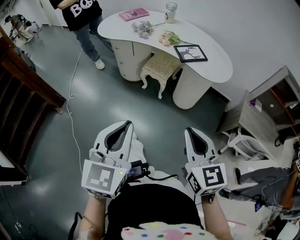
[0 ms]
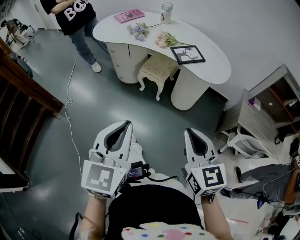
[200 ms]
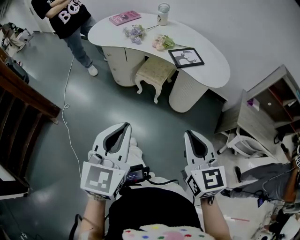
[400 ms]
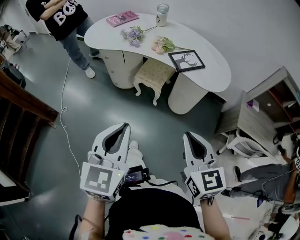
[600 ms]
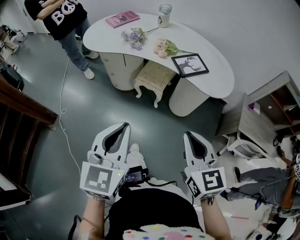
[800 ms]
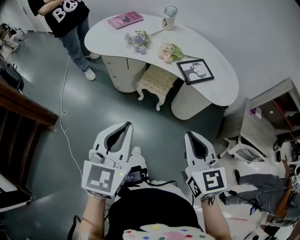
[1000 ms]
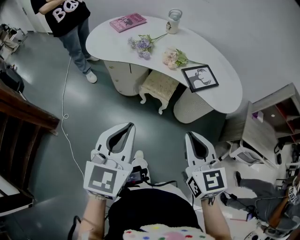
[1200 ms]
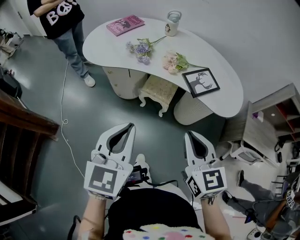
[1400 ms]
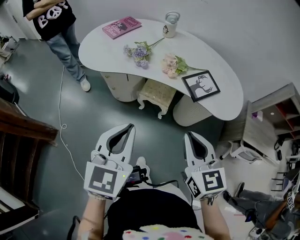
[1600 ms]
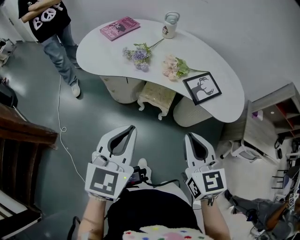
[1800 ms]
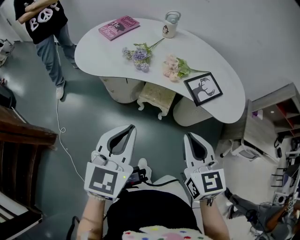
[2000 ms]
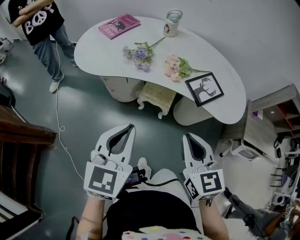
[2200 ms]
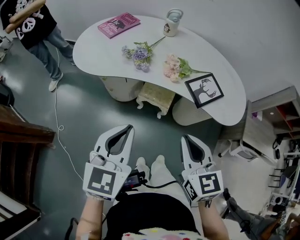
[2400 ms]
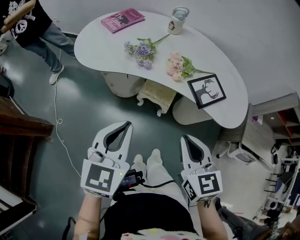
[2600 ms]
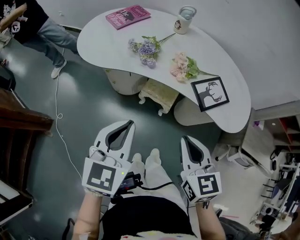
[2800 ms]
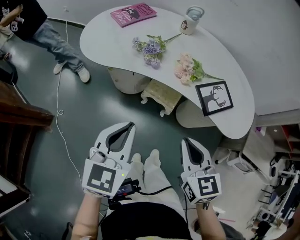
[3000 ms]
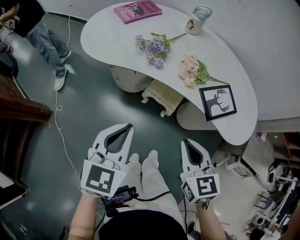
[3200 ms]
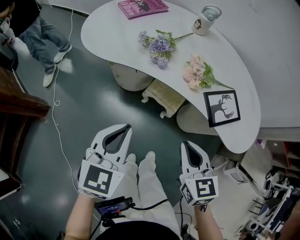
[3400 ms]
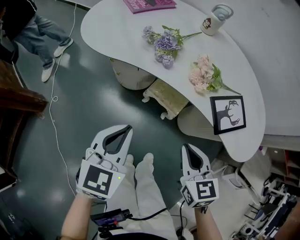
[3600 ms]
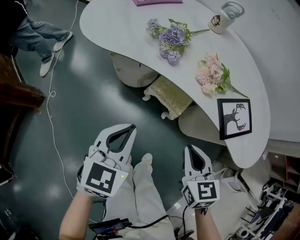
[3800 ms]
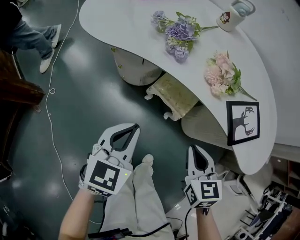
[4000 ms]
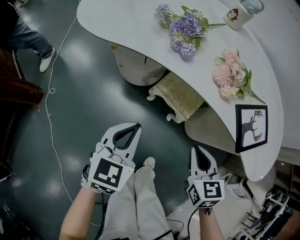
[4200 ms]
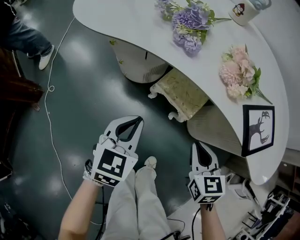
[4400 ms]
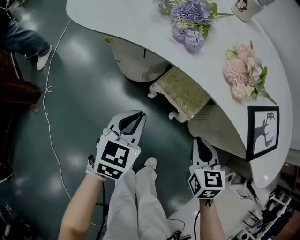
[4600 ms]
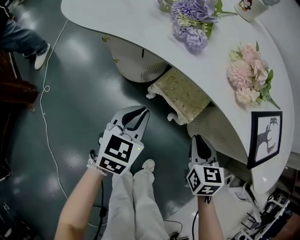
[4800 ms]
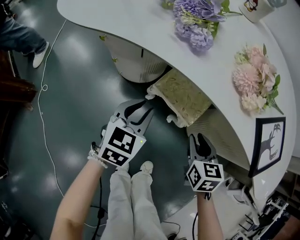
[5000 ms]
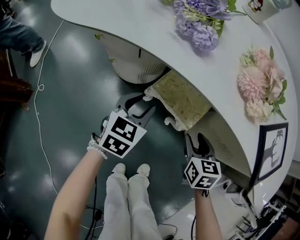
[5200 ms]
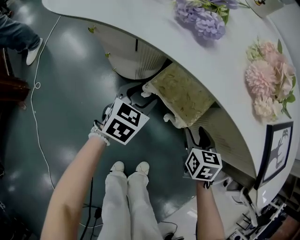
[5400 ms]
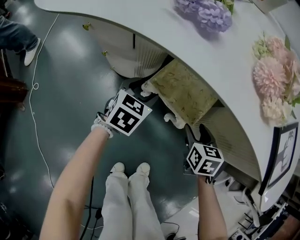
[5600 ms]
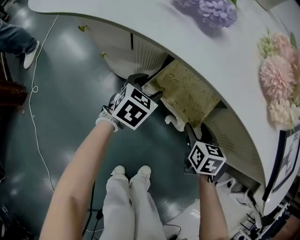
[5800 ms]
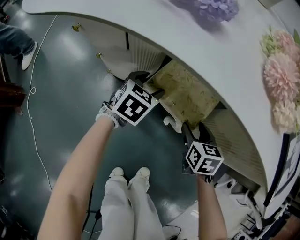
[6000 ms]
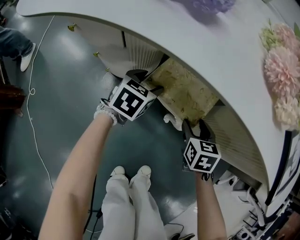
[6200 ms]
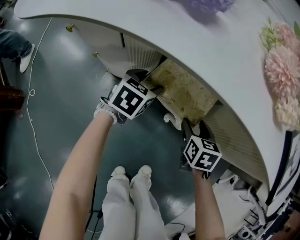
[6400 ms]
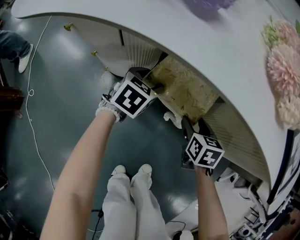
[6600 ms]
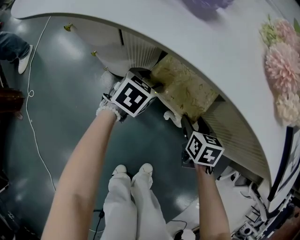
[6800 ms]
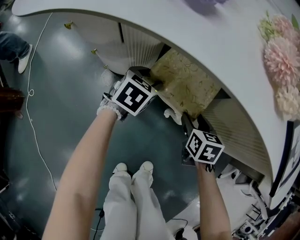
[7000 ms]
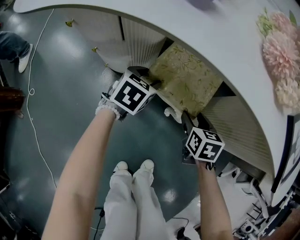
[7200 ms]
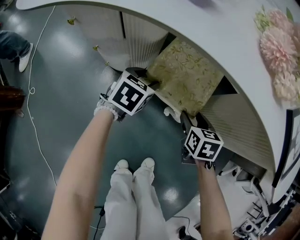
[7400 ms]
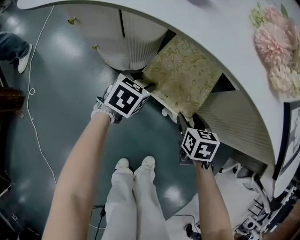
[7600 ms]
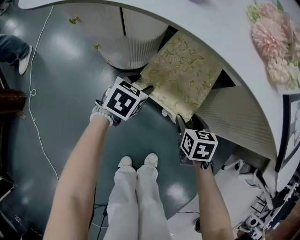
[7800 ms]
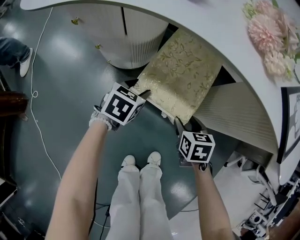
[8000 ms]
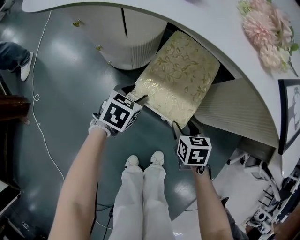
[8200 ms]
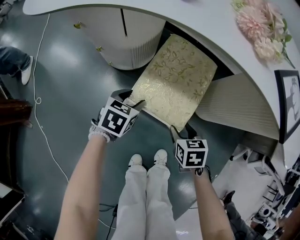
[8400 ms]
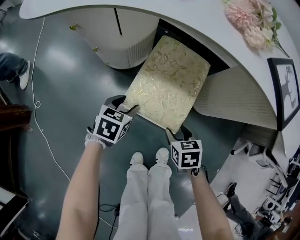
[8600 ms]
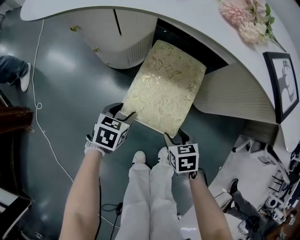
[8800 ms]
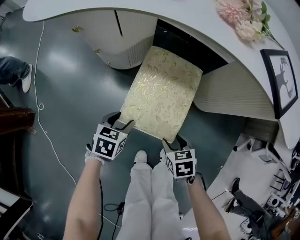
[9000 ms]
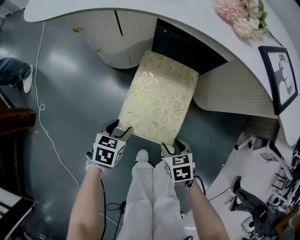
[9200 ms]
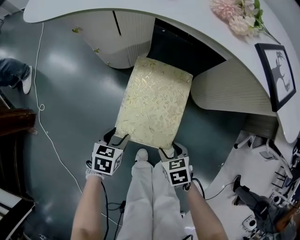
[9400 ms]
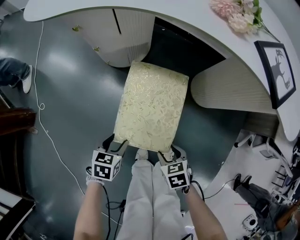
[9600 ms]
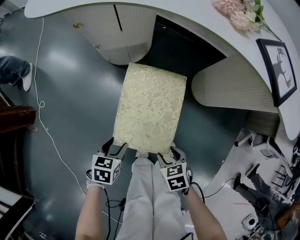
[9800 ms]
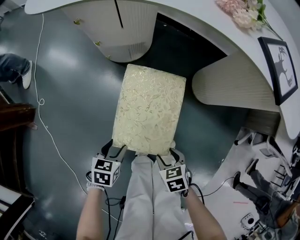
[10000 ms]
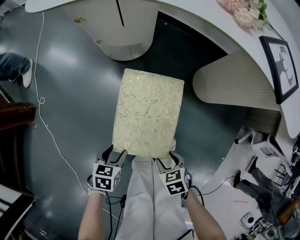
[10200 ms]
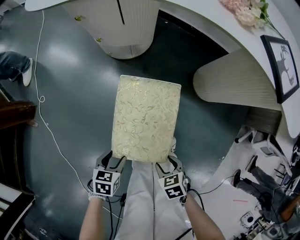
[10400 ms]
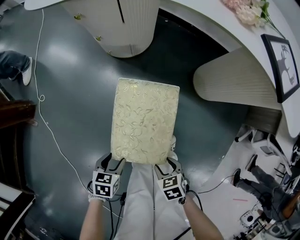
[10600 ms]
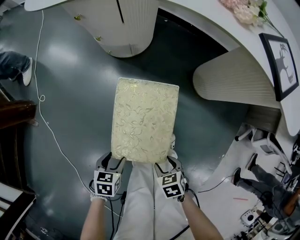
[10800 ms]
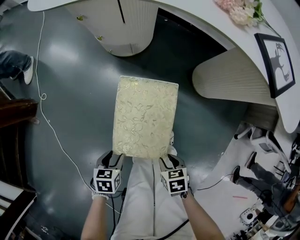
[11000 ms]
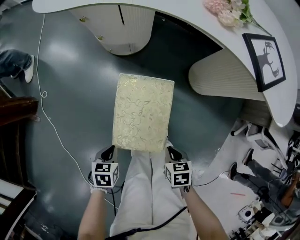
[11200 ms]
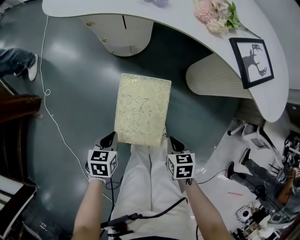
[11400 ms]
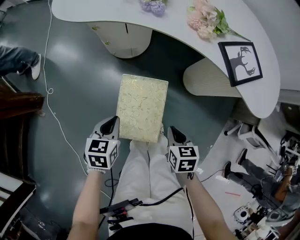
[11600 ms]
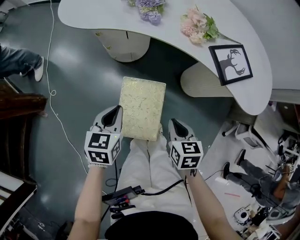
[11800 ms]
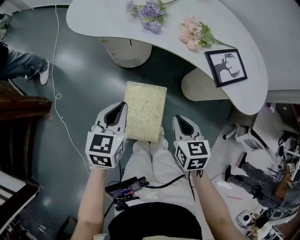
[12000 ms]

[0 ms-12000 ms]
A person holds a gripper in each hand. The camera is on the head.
0 ms to 1600 ms: The left gripper goes roughly 30 cm forward. The right gripper is displaced forward and to the left by about 30 cm.
1600 ms to 3000 ms: Both grippers move forward and downward, roughly 10 cm.
3000 ms to 4400 ms: Both grippers travel together downward, approximately 25 cm.
4400 ms to 6000 ms: The grippers both shift downward and forward by about 30 cm. The right gripper opens its fingers; the left gripper opens its fingers.
6000 ms to 7600 ms: The grippers stay close to where they were, moving slightly.
7600 ms to 9000 ms: The two grippers go roughly 20 cm backward.
9000 ms to 10400 ms: Both grippers move backward, some 20 cm.
10400 ms to 12000 ms: Both grippers move upward and forward, approximately 40 cm. The right gripper changes its angle by about 40 degrees, and closes up. The left gripper tips its fingers upward by roughly 30 degrees, and closes up.

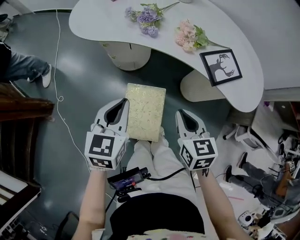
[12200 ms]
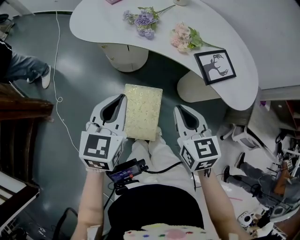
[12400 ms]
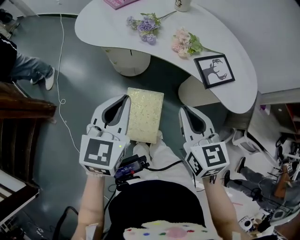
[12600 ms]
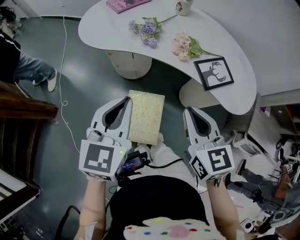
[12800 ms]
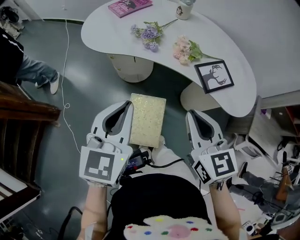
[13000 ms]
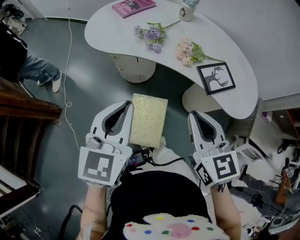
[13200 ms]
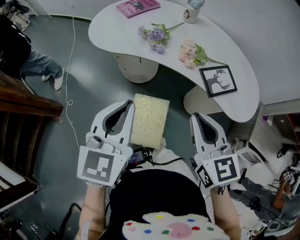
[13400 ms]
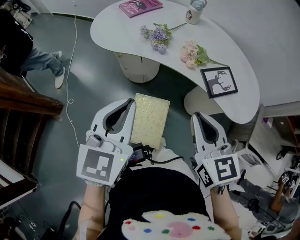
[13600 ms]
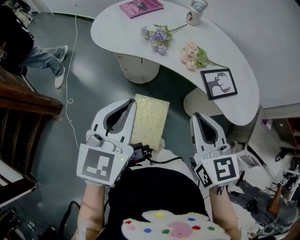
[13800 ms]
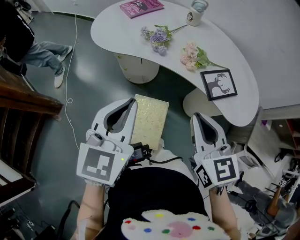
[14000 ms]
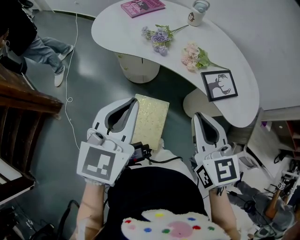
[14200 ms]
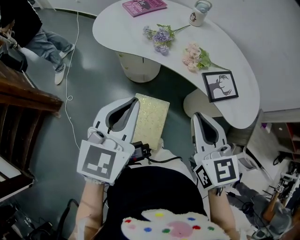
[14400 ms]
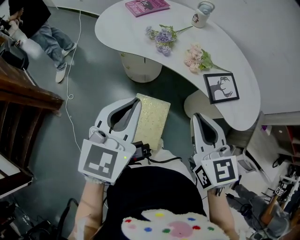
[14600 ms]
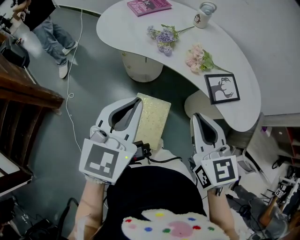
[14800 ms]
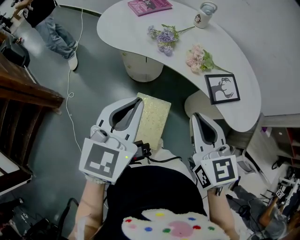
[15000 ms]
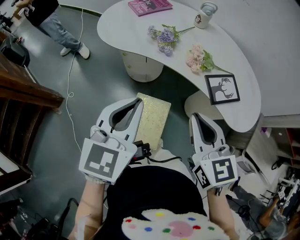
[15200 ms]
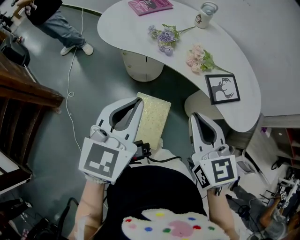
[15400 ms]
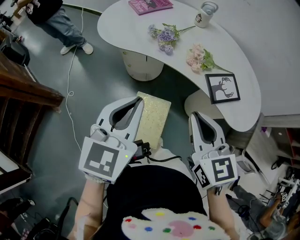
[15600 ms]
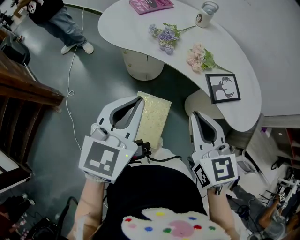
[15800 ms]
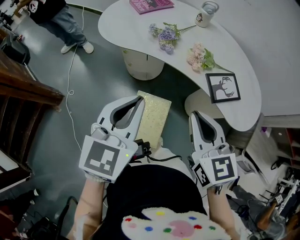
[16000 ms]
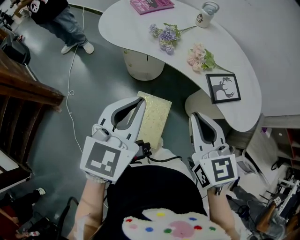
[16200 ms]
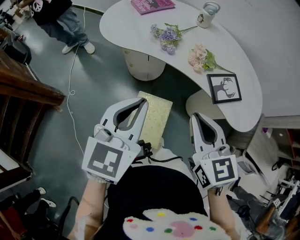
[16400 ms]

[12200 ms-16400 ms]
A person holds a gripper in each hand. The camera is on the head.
12200 ms to 13600 ms: The grippers both shift upward by roughly 15 cm.
13600 ms to 15000 ms: The grippers move only a little.
15000 ms to 16400 ms: The two grippers keep their place.

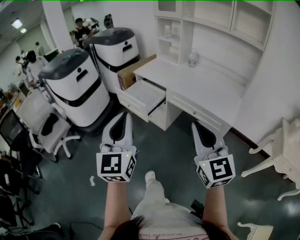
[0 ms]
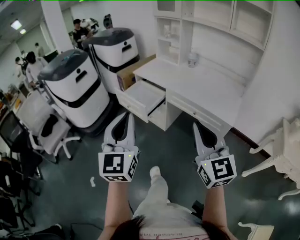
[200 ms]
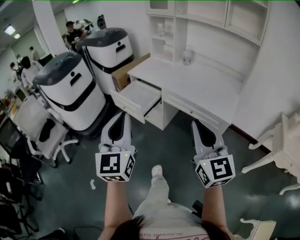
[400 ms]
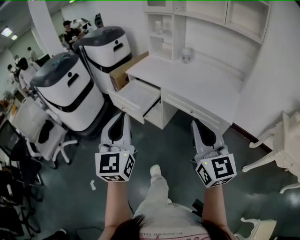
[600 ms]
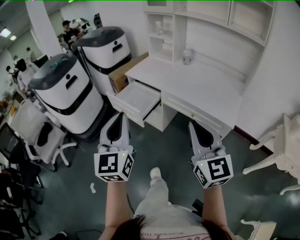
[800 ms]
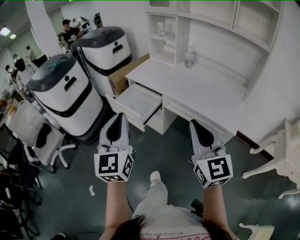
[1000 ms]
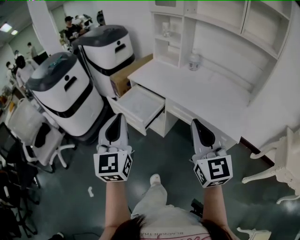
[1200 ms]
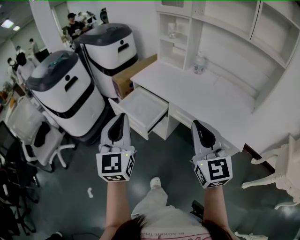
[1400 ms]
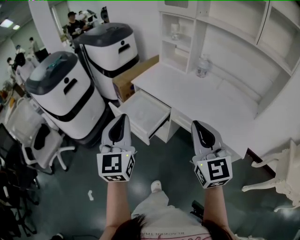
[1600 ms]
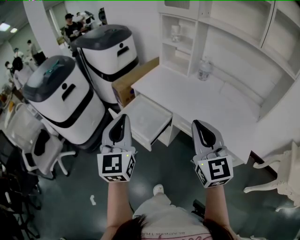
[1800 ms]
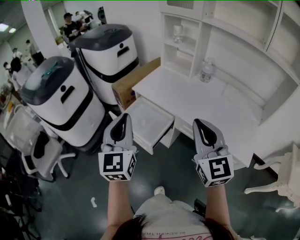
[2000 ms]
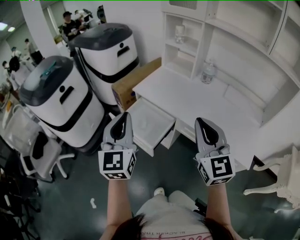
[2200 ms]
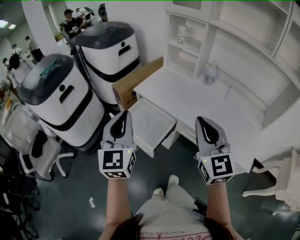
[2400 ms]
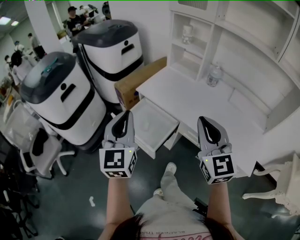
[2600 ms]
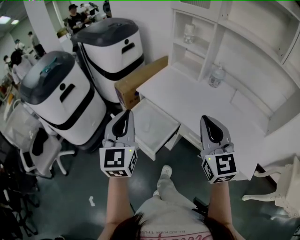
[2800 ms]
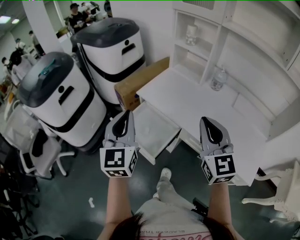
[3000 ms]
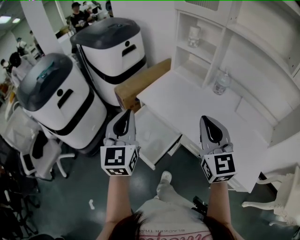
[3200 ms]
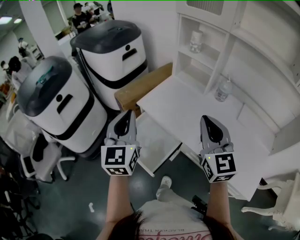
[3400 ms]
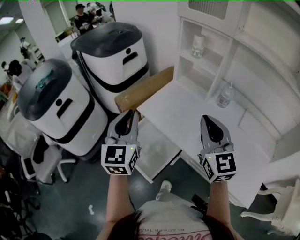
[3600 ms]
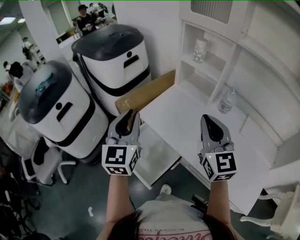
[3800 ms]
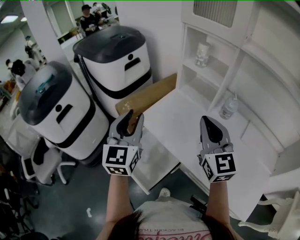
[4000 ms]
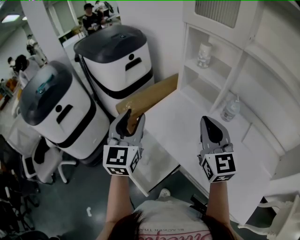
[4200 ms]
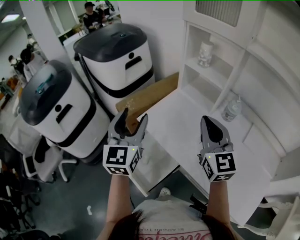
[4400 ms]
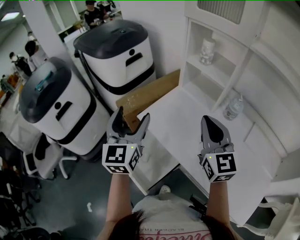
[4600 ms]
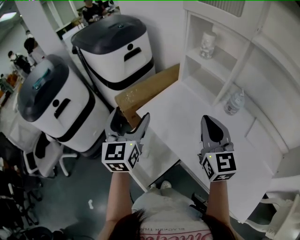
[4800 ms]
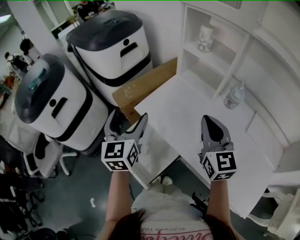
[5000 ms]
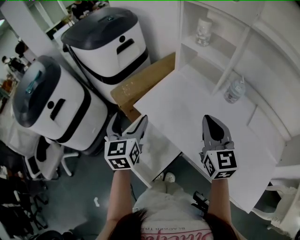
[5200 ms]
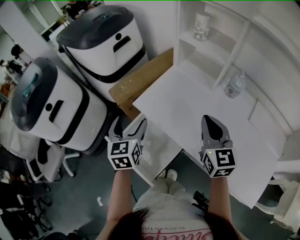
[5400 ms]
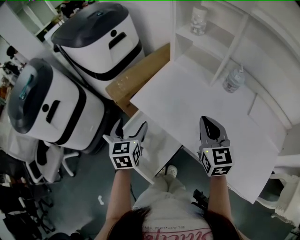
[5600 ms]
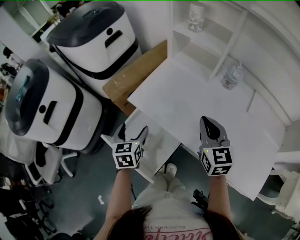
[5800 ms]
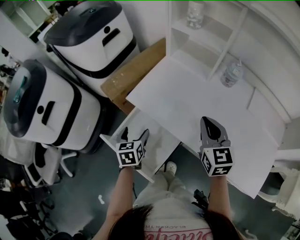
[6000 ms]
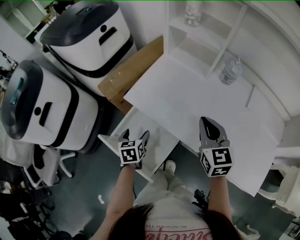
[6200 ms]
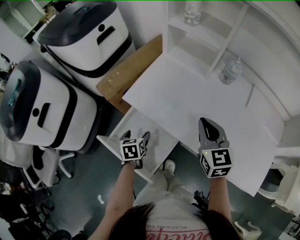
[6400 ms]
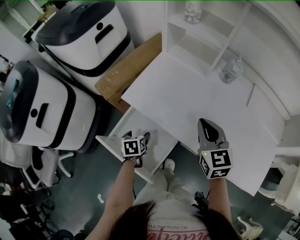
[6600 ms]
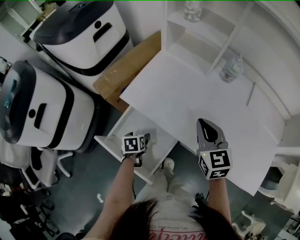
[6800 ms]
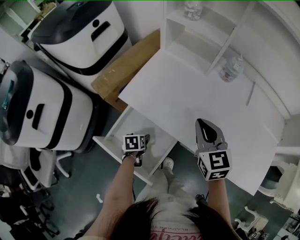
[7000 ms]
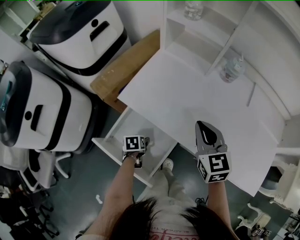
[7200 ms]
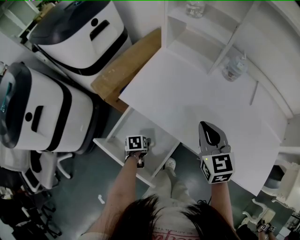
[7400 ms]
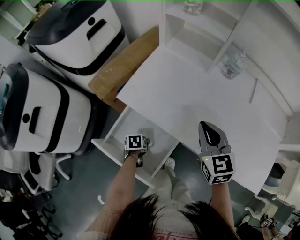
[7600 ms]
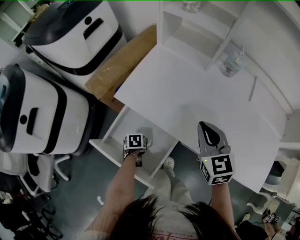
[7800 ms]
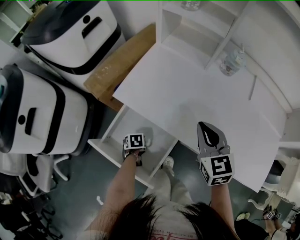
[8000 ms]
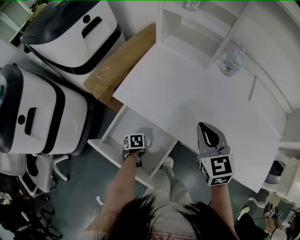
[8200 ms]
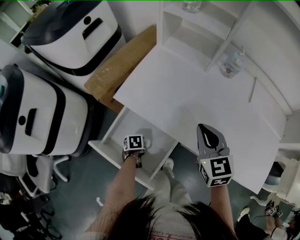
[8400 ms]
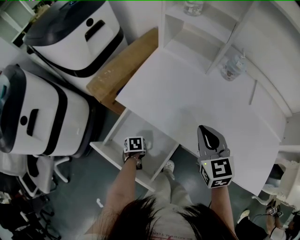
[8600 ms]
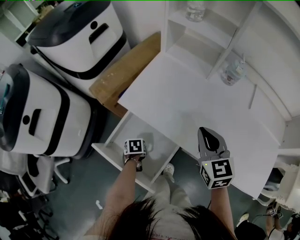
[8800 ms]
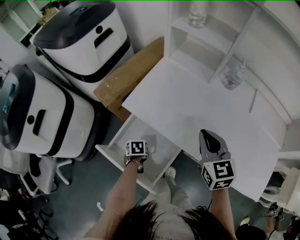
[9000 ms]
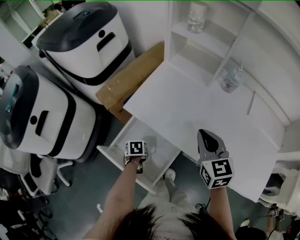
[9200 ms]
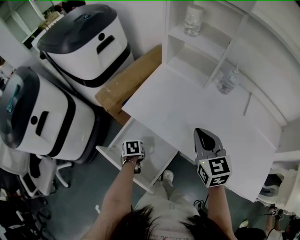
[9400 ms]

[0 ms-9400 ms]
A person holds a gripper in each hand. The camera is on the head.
0 ms to 1600 ms: Both grippers move forward, roughly 25 cm.
1600 ms to 3200 ms: The two grippers go some 25 cm forward.
3200 ms to 4800 ms: The two grippers go some 15 cm forward. The left gripper opens up.
4800 ms to 6200 ms: The right gripper moves downward, roughly 10 cm, and turns by roughly 20 degrees. The left gripper shifts about 30 cm downward, and tilts its fingers approximately 40 degrees downward.
6200 ms to 7800 ms: The left gripper goes about 20 cm downward, and rotates about 30 degrees.
7800 ms to 9400 ms: The left gripper travels upward by approximately 10 cm, and closes up.
